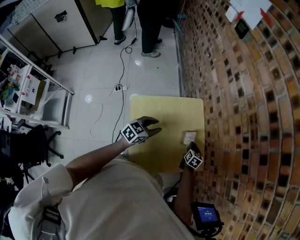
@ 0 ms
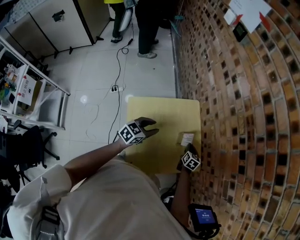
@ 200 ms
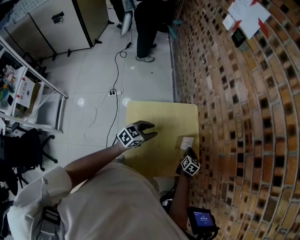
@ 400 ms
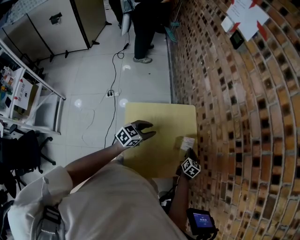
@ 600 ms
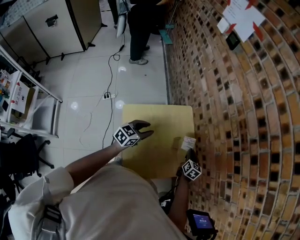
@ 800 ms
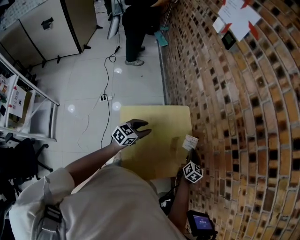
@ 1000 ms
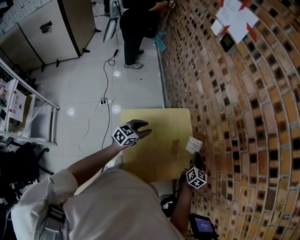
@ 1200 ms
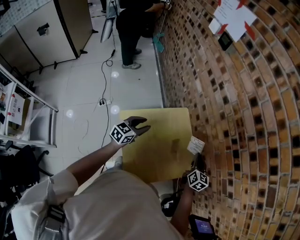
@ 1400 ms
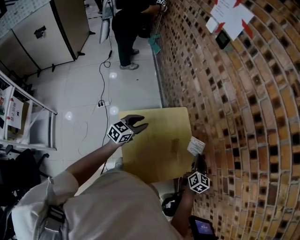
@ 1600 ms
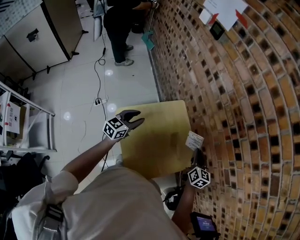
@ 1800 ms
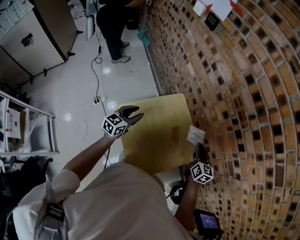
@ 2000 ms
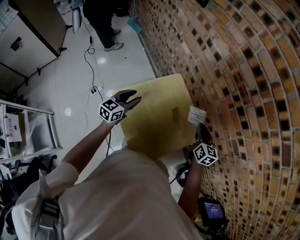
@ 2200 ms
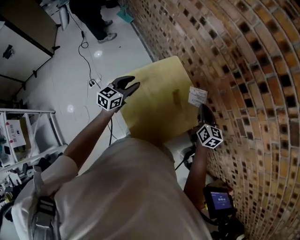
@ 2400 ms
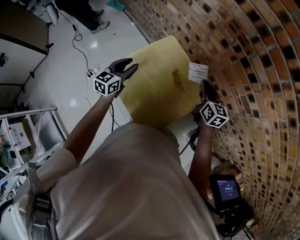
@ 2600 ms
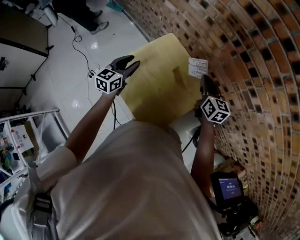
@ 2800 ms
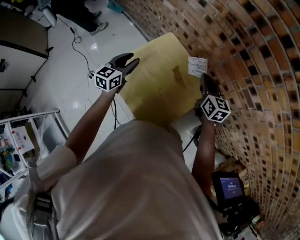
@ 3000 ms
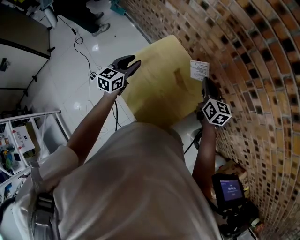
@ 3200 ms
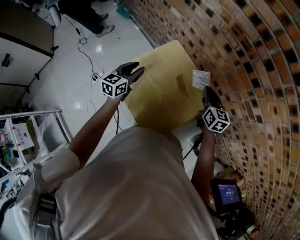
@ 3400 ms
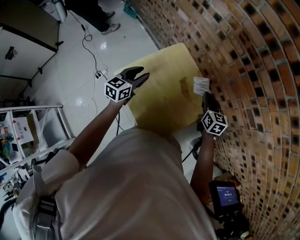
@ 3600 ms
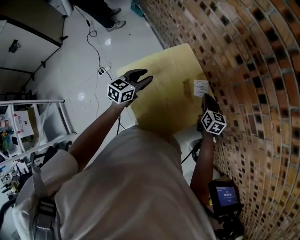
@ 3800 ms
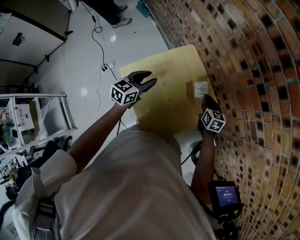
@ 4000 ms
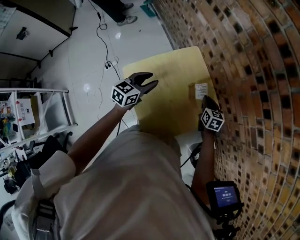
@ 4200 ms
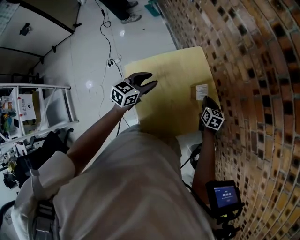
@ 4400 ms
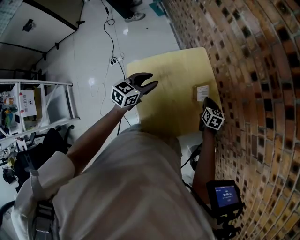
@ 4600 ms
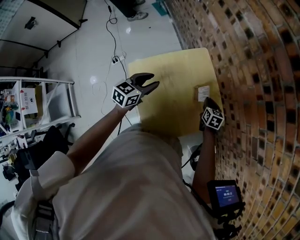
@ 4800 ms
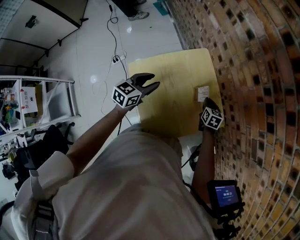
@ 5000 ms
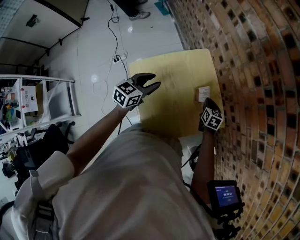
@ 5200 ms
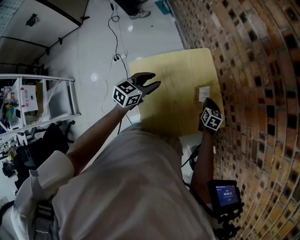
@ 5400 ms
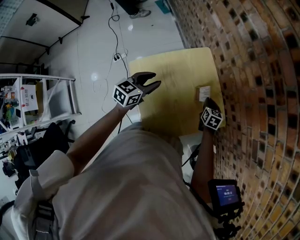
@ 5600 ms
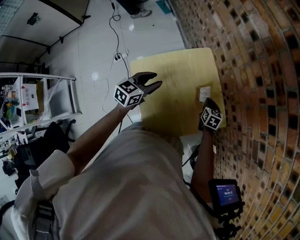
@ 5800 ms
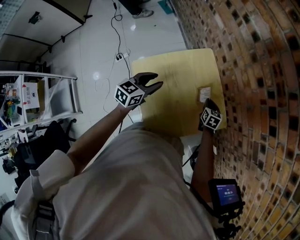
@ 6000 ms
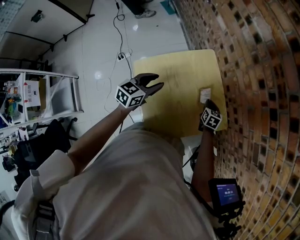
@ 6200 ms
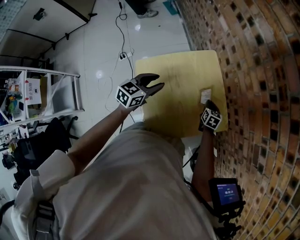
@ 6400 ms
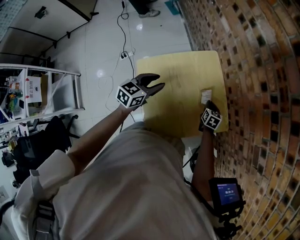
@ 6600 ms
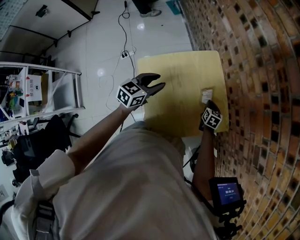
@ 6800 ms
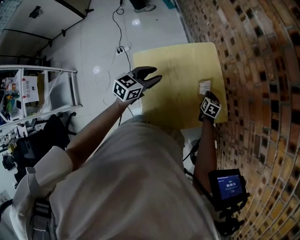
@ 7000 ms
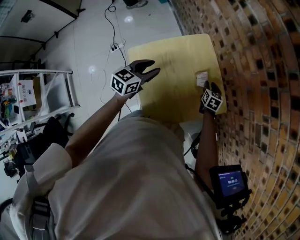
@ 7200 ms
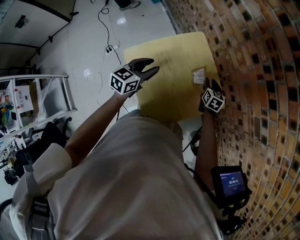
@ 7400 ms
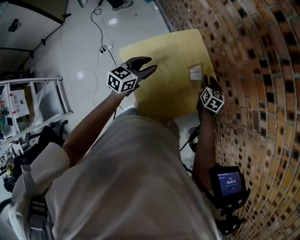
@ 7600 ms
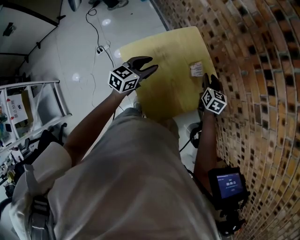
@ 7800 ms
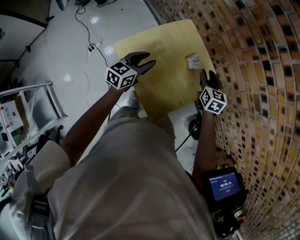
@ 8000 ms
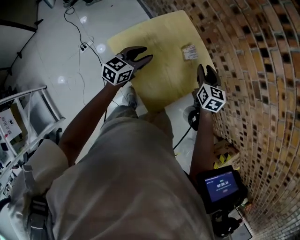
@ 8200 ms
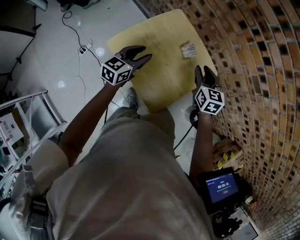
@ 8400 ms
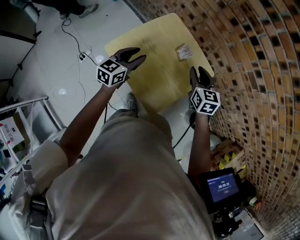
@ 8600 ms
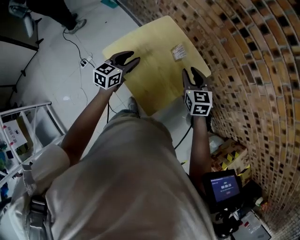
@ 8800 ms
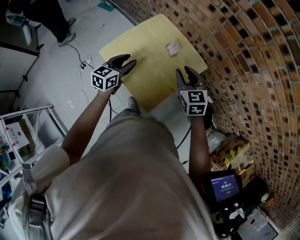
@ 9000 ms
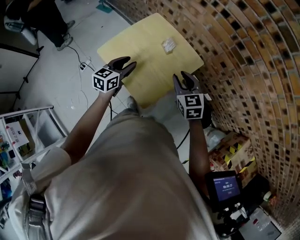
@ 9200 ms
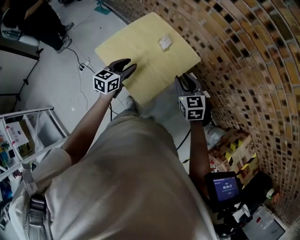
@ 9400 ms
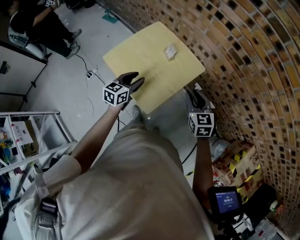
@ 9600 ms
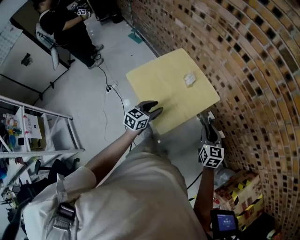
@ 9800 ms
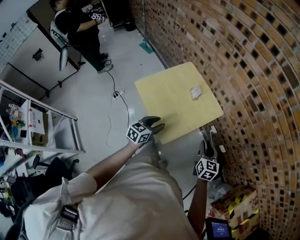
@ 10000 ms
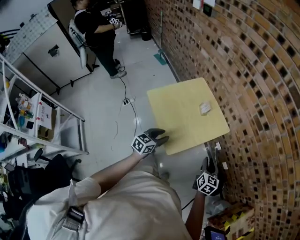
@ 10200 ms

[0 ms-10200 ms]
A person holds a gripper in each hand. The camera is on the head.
0 ms to 1400 ms: The right gripper is displaced upward by about 20 cm, and rotates about 20 degrees, while the left gripper travels to the left by approximately 10 cm.
1400 ms to 3000 ms: The grippers stay close to where they were, moving slightly.
3000 ms to 4400 ms: The right gripper moves downward, roughly 20 cm, and rotates roughly 30 degrees. Meanwhile the left gripper moves downward, roughly 5 cm.
4400 ms to 5800 ms: There are only small adjustments of the grippers.
5800 ms to 7200 ms: The right gripper opens.
7200 ms to 8800 ms: The left gripper heads backward, covering about 5 cm. The right gripper heads upward and backward, covering approximately 30 cm, and swivels approximately 20 degrees.
8800 ms to 10200 ms: Both grippers move backward and to the right, roughly 25 cm. The right gripper changes its angle by roughly 20 degrees.

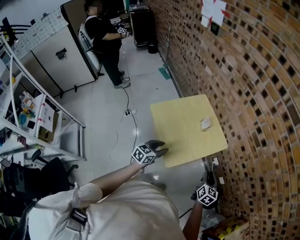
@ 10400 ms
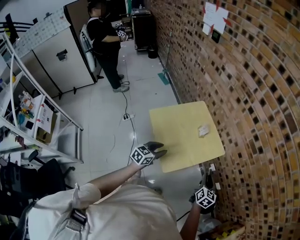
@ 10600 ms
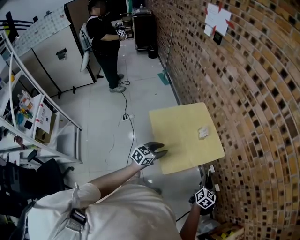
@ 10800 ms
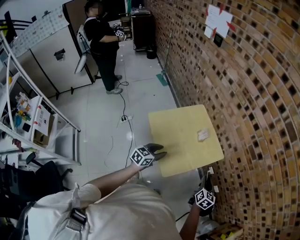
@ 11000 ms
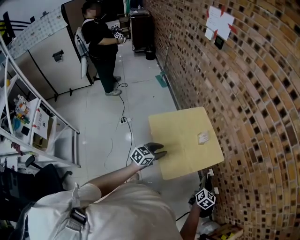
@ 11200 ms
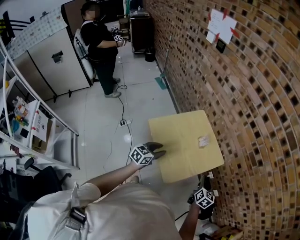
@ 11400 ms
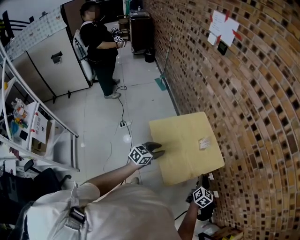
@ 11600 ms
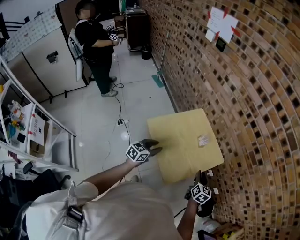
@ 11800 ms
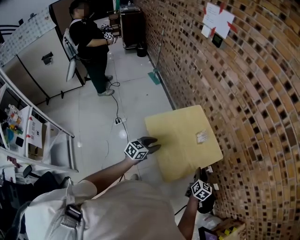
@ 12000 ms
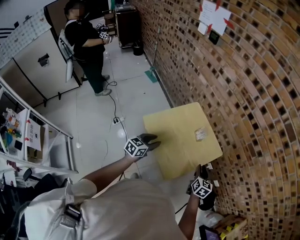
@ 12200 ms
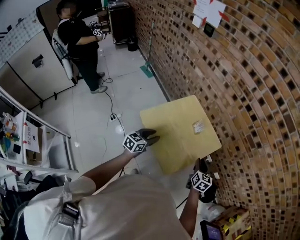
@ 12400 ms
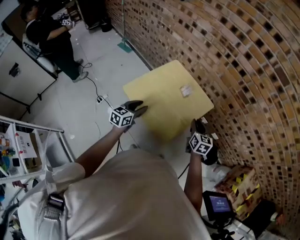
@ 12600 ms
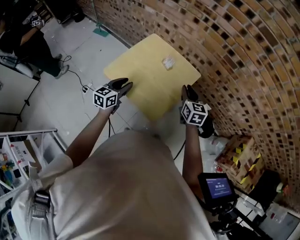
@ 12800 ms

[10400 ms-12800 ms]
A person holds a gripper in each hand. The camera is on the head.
10400 ms to 11600 ms: Both grippers move to the left and forward, roughly 15 cm.
11600 ms to 12800 ms: The right gripper moves upward, roughly 10 cm.

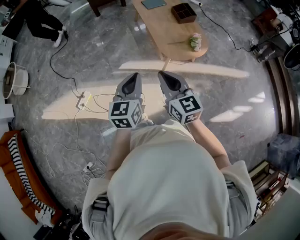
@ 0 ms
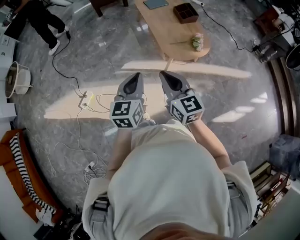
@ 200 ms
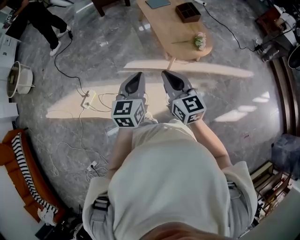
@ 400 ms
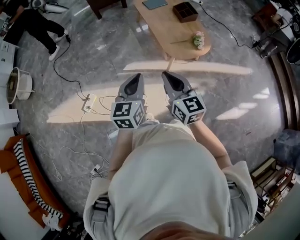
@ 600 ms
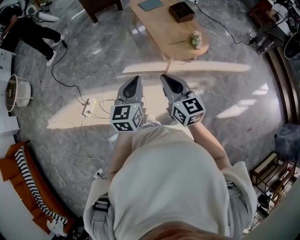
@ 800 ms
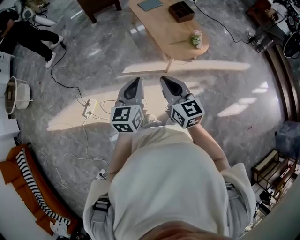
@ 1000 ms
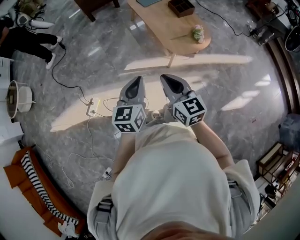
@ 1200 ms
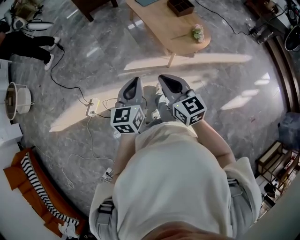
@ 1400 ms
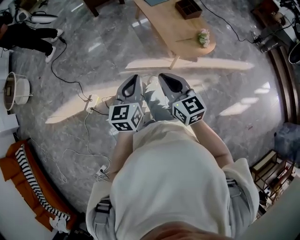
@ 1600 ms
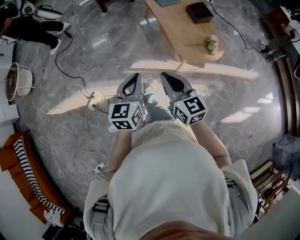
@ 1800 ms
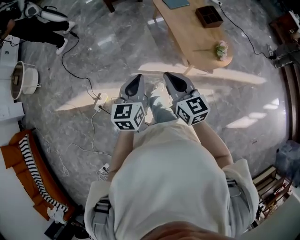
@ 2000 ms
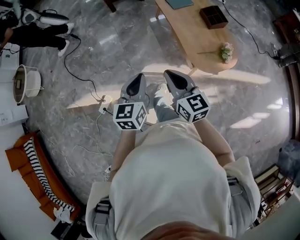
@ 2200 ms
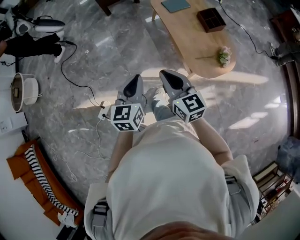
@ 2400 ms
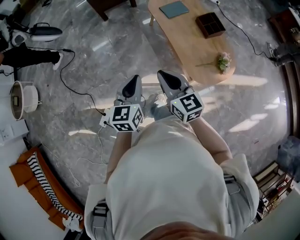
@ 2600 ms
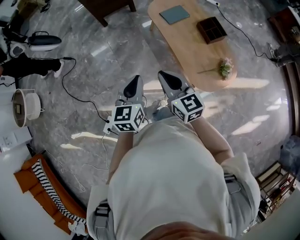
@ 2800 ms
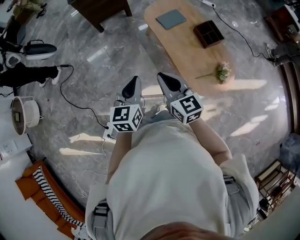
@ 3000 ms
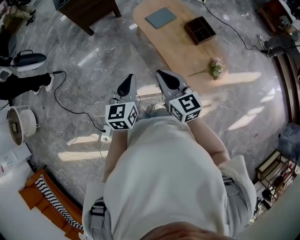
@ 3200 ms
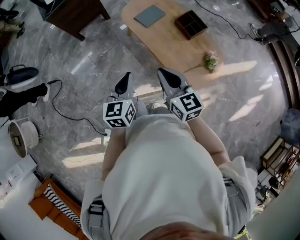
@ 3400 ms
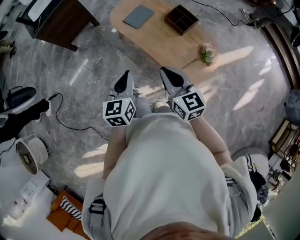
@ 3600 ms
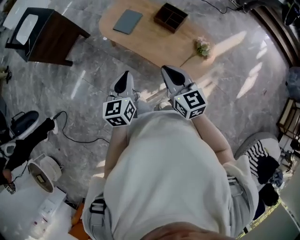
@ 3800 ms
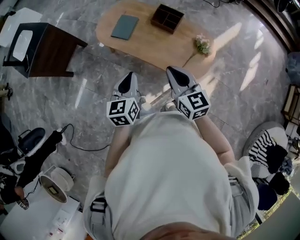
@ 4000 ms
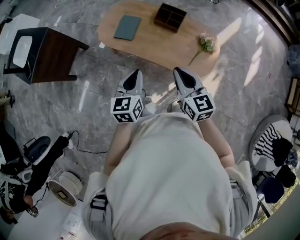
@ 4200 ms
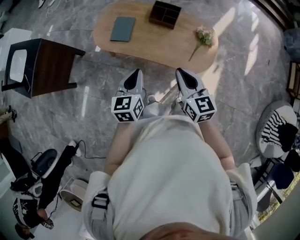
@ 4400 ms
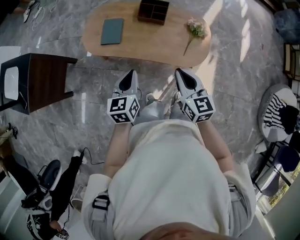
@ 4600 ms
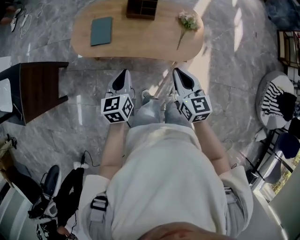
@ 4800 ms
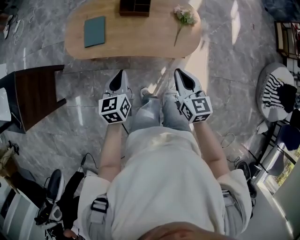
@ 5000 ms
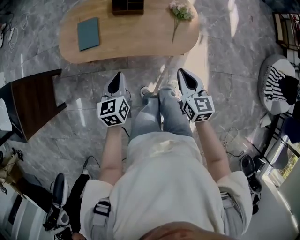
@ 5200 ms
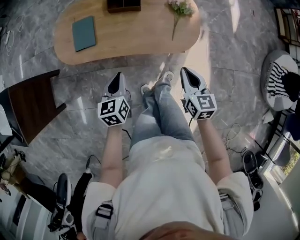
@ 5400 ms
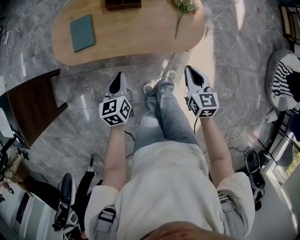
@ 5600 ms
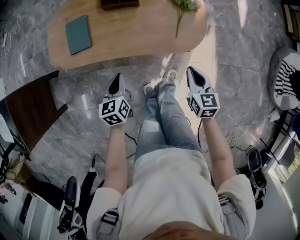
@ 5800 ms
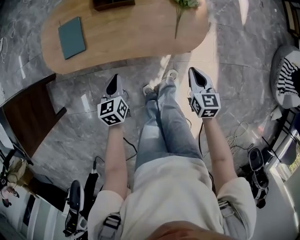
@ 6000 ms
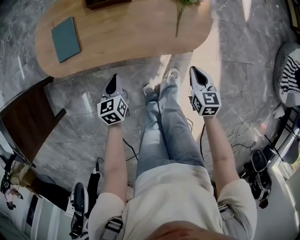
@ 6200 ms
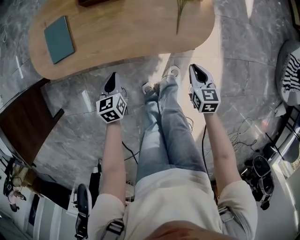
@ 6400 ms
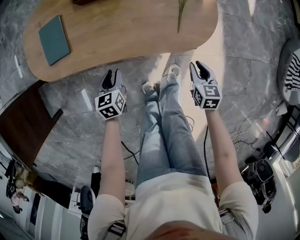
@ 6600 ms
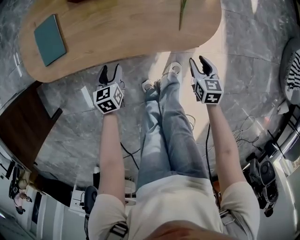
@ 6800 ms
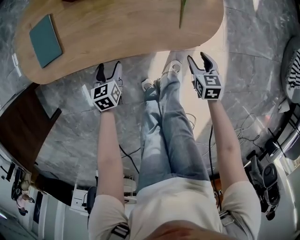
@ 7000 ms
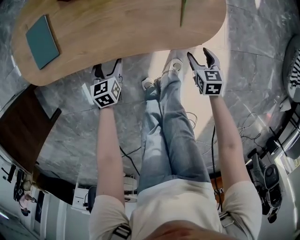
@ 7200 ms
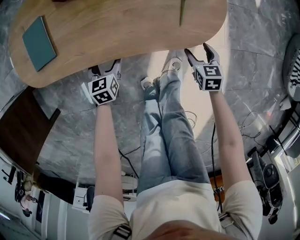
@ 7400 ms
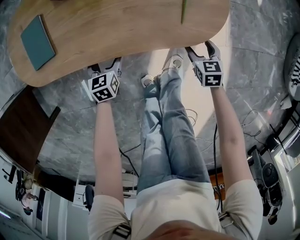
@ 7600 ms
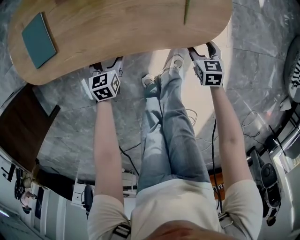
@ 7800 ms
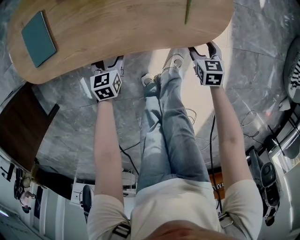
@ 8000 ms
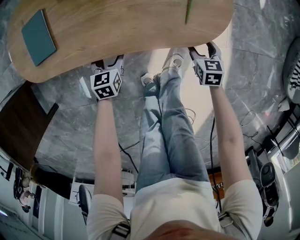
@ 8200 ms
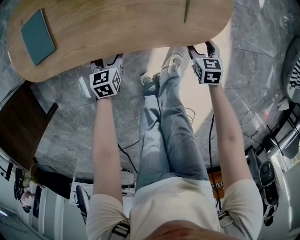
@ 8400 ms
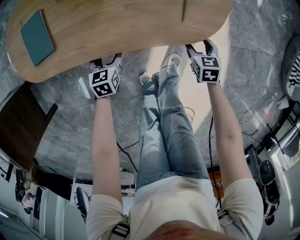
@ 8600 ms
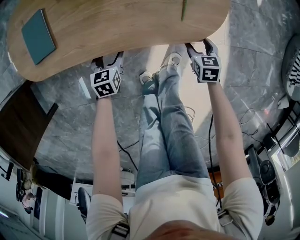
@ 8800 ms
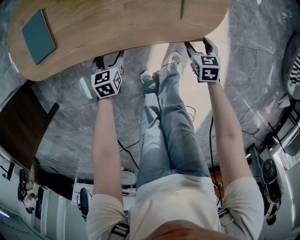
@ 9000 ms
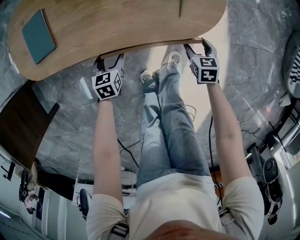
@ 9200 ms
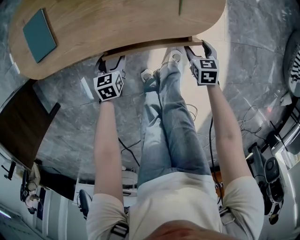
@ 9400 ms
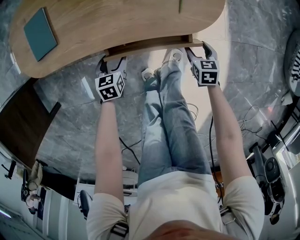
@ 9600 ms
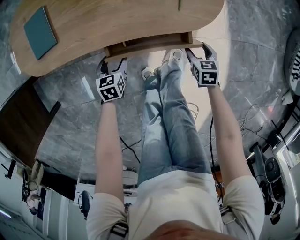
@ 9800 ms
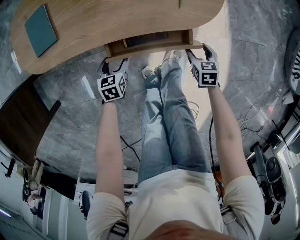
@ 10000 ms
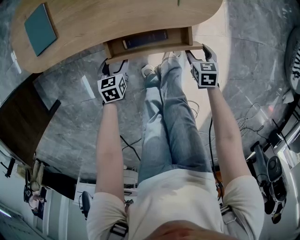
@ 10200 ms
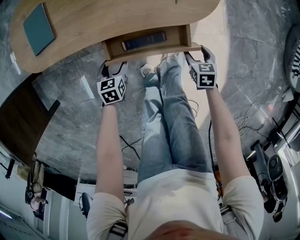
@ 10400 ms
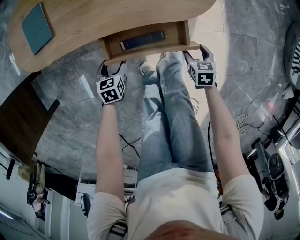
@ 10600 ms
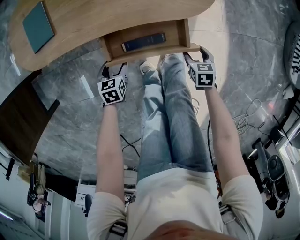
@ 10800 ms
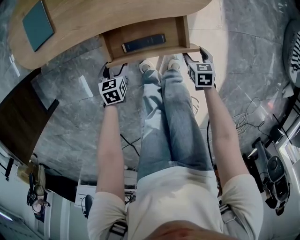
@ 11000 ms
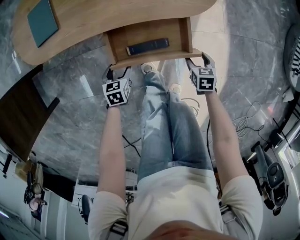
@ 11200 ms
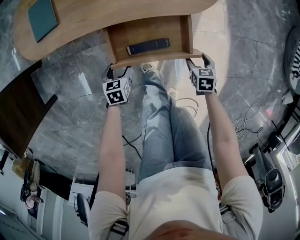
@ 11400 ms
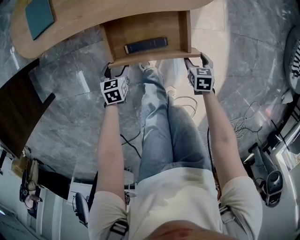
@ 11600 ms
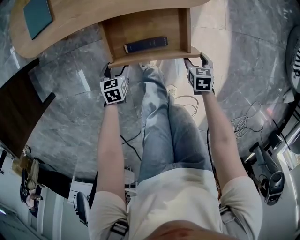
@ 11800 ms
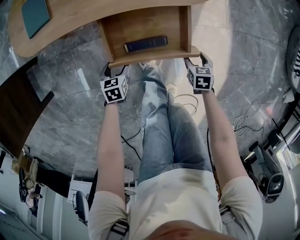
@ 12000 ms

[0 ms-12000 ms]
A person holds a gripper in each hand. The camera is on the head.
0 ms to 1600 ms: Both grippers move to the left, approximately 10 cm.
1600 ms to 3000 ms: The two grippers go some 35 cm forward.
3000 ms to 4400 ms: The right gripper moves about 10 cm, and rotates approximately 50 degrees. Meanwhile the left gripper shifts by approximately 20 cm, and rotates about 40 degrees.
4400 ms to 6000 ms: The left gripper moves downward, approximately 30 cm, and swivels approximately 20 degrees. Meanwhile the right gripper heads downward and to the right, covering roughly 35 cm, and changes its angle by roughly 40 degrees.
6000 ms to 7600 ms: Both grippers move downward, about 25 cm. The left gripper opens its fingers, while the right gripper opens.
7600 ms to 9000 ms: The grippers make only small movements.
9000 ms to 10400 ms: Both grippers move backward, approximately 10 cm.
10400 ms to 12000 ms: The grippers both shift backward by approximately 10 cm.
